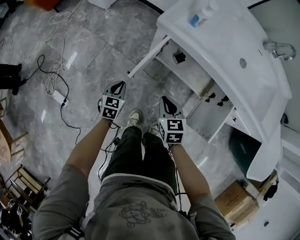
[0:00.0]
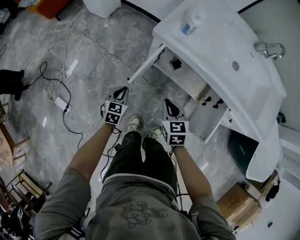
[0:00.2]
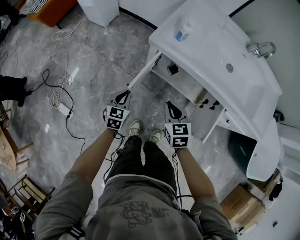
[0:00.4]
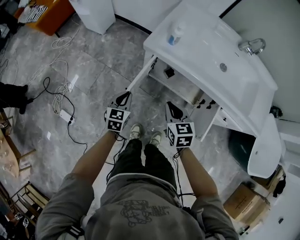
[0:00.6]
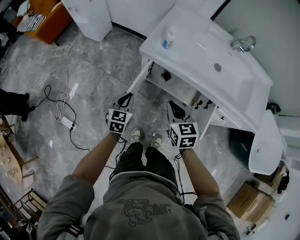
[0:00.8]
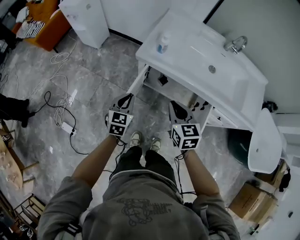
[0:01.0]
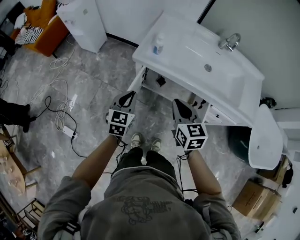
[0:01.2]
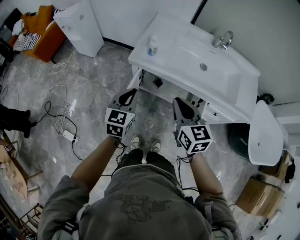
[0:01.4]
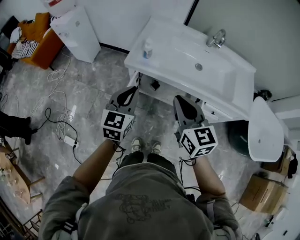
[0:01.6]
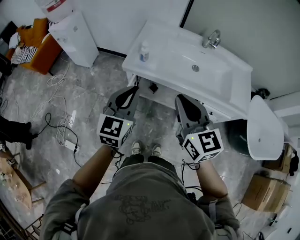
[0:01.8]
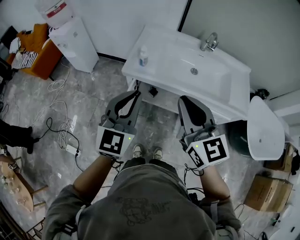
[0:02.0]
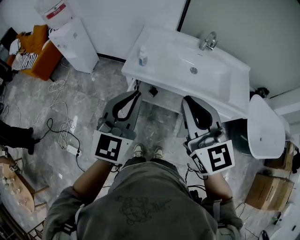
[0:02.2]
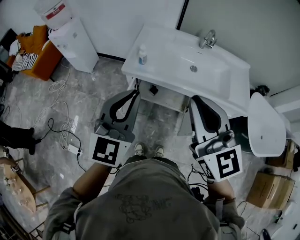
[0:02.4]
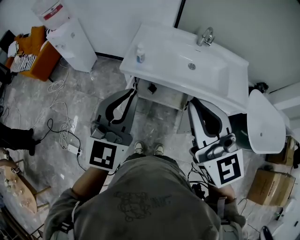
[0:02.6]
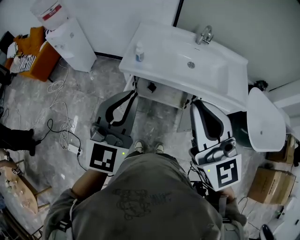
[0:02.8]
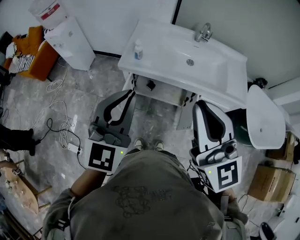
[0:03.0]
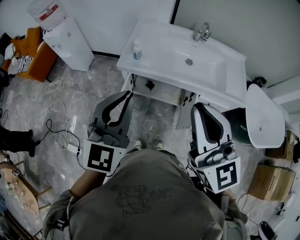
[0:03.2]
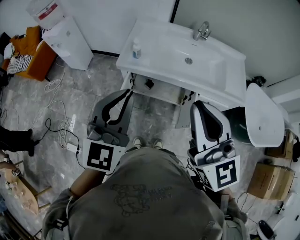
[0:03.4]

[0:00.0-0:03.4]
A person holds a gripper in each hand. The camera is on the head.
0.0 to 1.6 s: Both grippers move upward, about 40 cm. The left gripper turns by approximately 30 degrees. Meanwhile the right gripper changes its angle by about 30 degrees.
1.6 to 3.4 s: Both grippers move upward and backward, roughly 20 cm. The left gripper swivels approximately 20 degrees, while the right gripper rotates about 30 degrees.

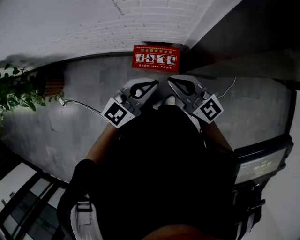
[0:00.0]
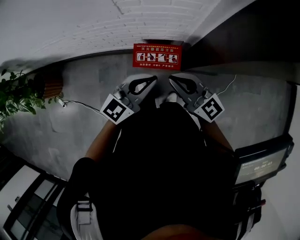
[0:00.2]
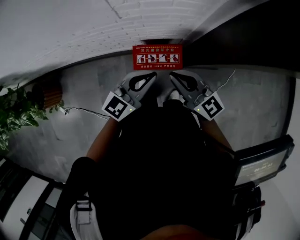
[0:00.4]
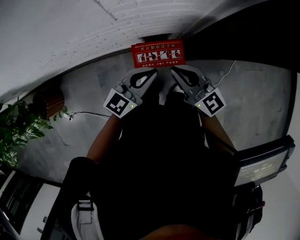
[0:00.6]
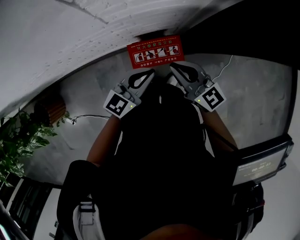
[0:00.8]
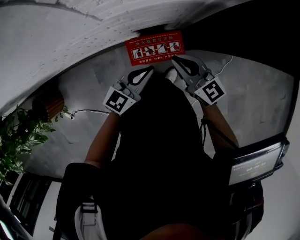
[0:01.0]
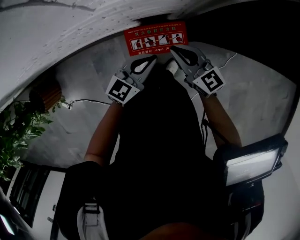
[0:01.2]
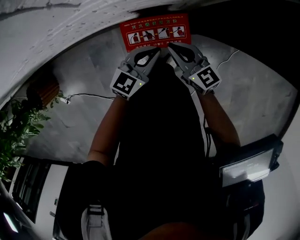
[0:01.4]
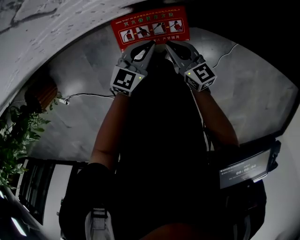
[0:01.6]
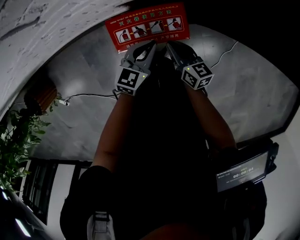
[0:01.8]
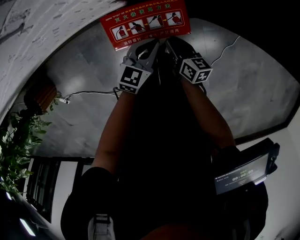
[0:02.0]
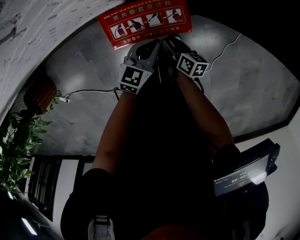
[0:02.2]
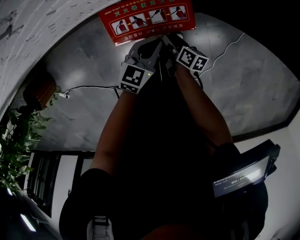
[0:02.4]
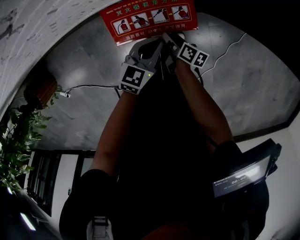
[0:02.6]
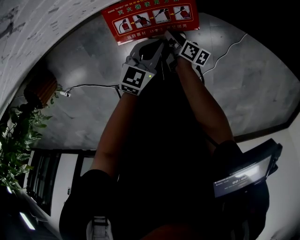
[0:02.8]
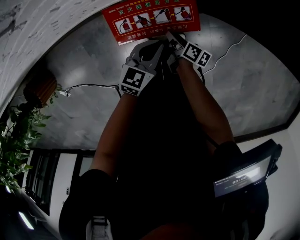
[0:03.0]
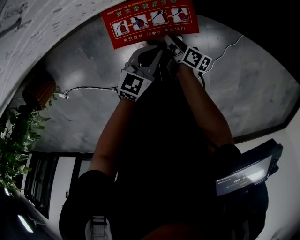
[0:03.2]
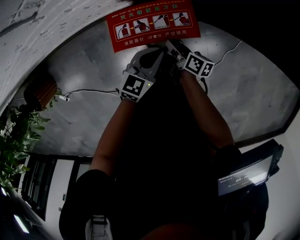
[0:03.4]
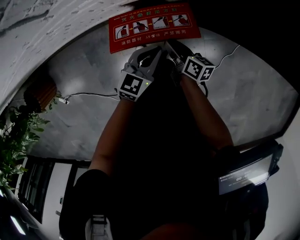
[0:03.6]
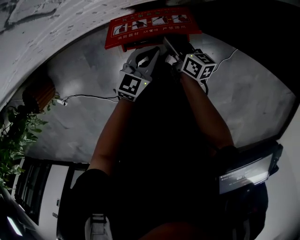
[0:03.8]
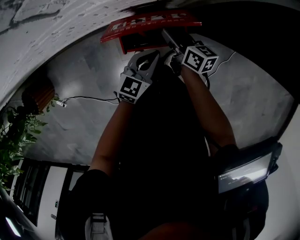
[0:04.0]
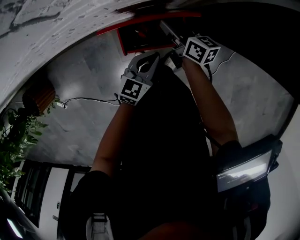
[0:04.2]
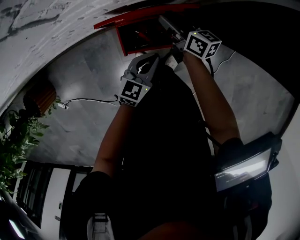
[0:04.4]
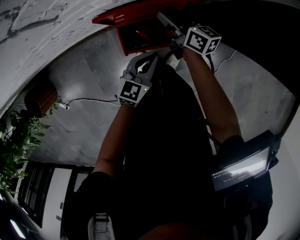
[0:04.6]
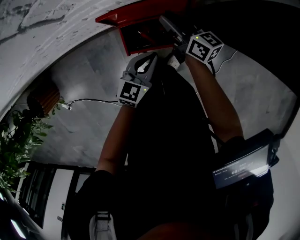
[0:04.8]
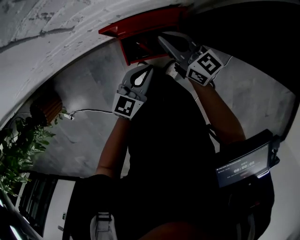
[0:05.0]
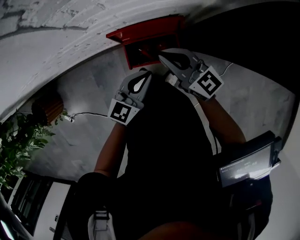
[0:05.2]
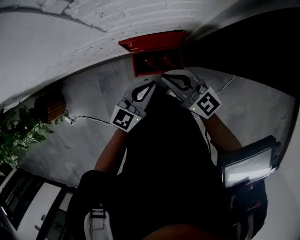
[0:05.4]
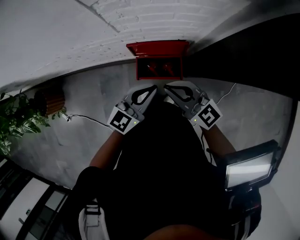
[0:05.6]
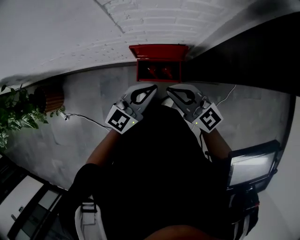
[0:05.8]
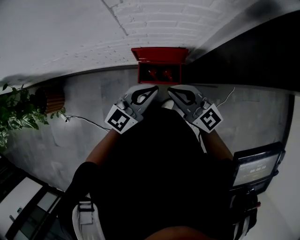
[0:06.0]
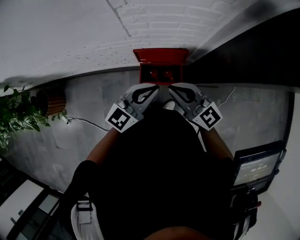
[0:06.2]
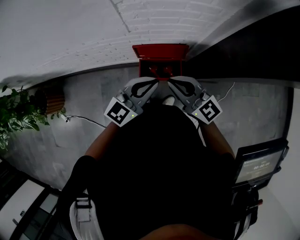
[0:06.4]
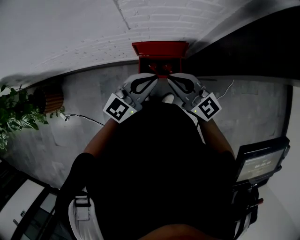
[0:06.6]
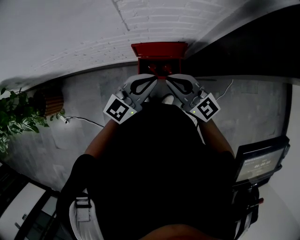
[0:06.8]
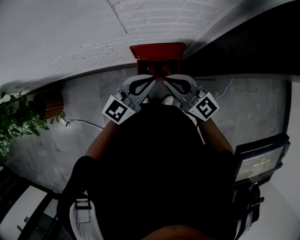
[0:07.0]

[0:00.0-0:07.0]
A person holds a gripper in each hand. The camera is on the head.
0.0 to 1.4 s: Both grippers move downward and forward, some 35 cm. The right gripper swivels some 30 degrees.
1.4 to 2.8 s: The left gripper goes about 15 cm downward, while the right gripper travels downward by approximately 30 cm, rolls clockwise, seen from behind, by some 60 degrees, and opens up.
2.8 to 4.2 s: The right gripper heads upward and forward, covering roughly 25 cm, and swivels some 40 degrees. Meanwhile the left gripper shifts roughly 5 cm upward.
4.2 to 5.6 s: The left gripper travels upward by some 30 cm. The right gripper shifts roughly 40 cm upward and backward, rolls counterclockwise, seen from behind, by roughly 50 degrees, and closes its fingers.
5.6 to 7.0 s: The right gripper is displaced upward by roughly 5 cm. The left gripper moves upward, roughly 10 cm.

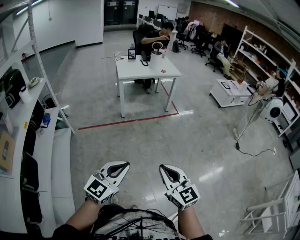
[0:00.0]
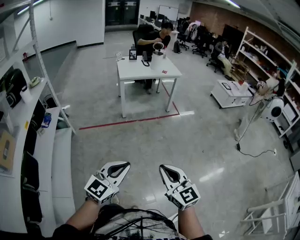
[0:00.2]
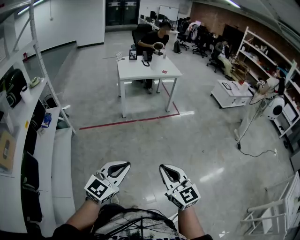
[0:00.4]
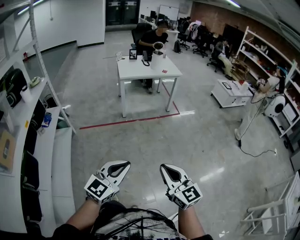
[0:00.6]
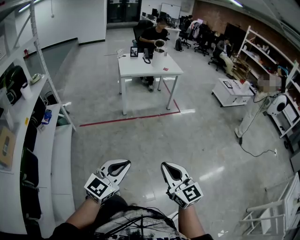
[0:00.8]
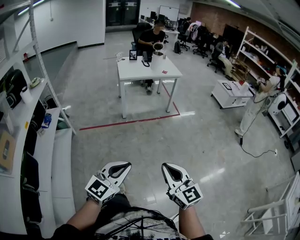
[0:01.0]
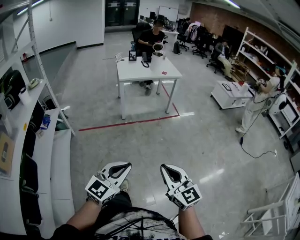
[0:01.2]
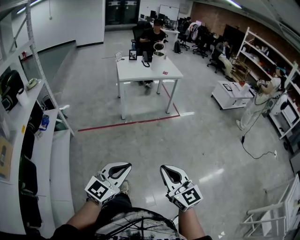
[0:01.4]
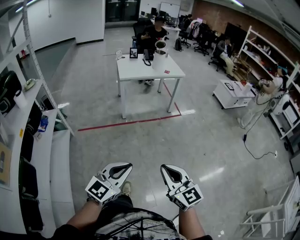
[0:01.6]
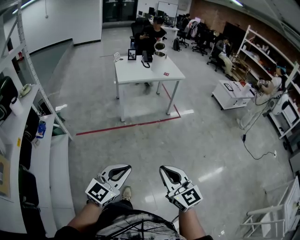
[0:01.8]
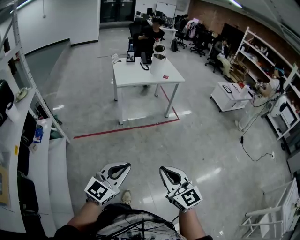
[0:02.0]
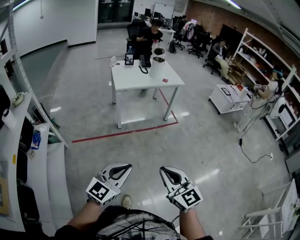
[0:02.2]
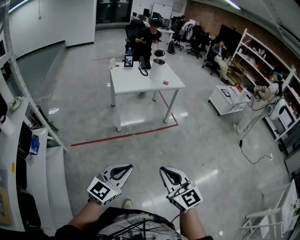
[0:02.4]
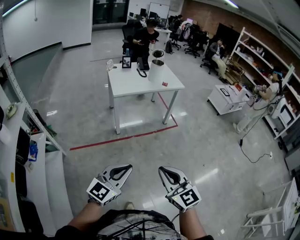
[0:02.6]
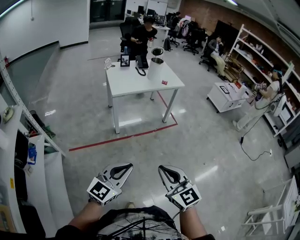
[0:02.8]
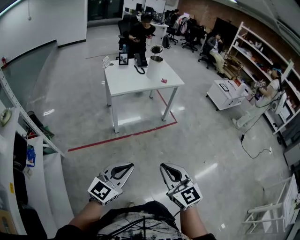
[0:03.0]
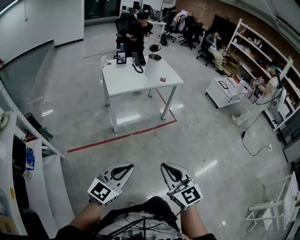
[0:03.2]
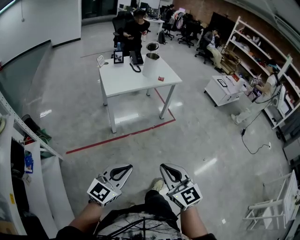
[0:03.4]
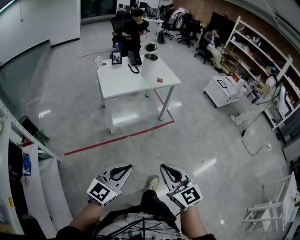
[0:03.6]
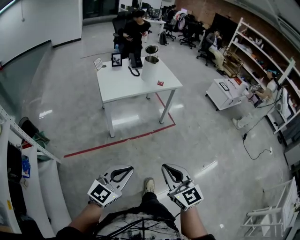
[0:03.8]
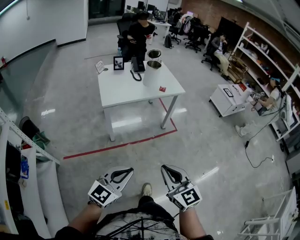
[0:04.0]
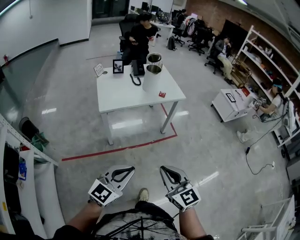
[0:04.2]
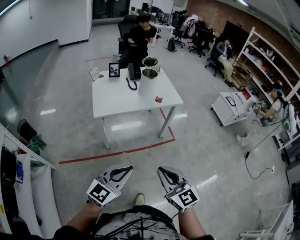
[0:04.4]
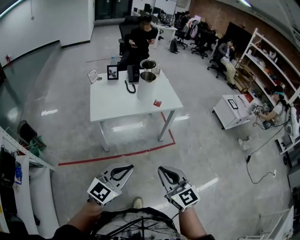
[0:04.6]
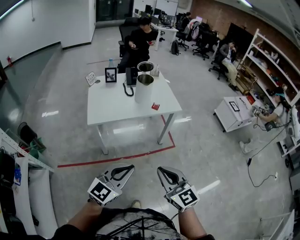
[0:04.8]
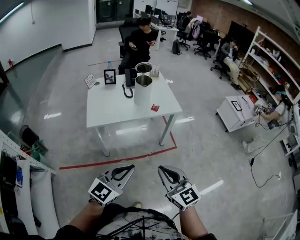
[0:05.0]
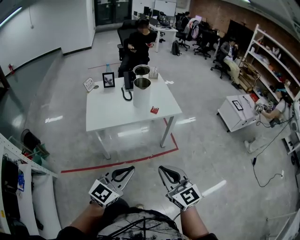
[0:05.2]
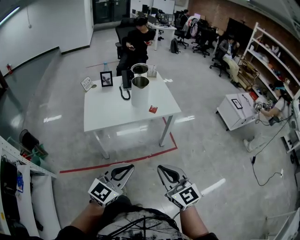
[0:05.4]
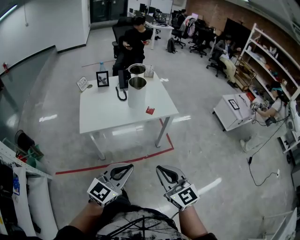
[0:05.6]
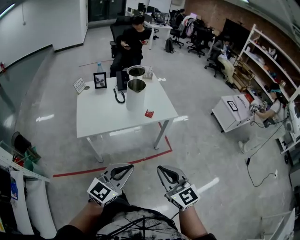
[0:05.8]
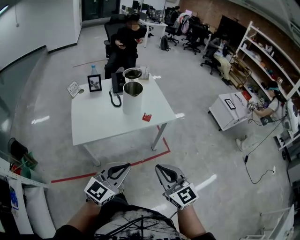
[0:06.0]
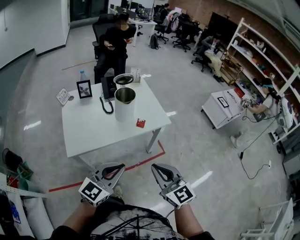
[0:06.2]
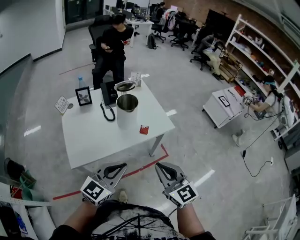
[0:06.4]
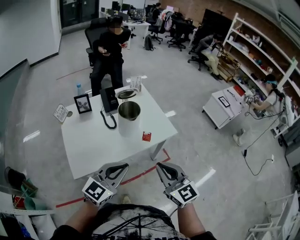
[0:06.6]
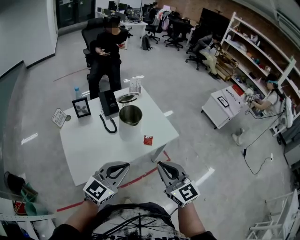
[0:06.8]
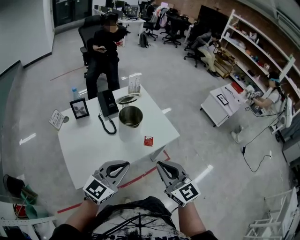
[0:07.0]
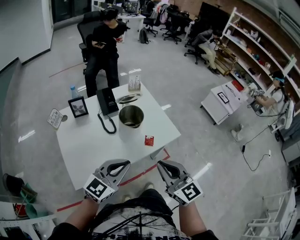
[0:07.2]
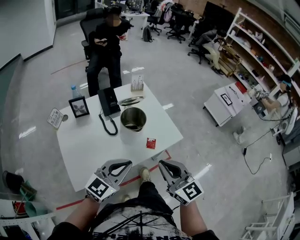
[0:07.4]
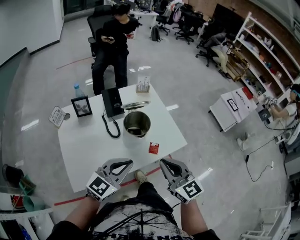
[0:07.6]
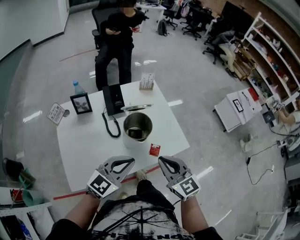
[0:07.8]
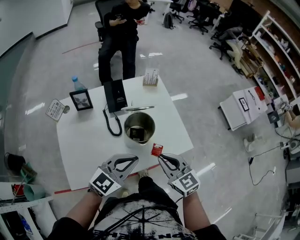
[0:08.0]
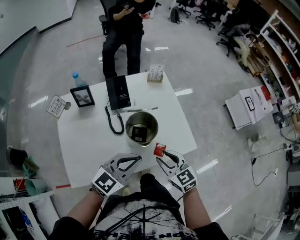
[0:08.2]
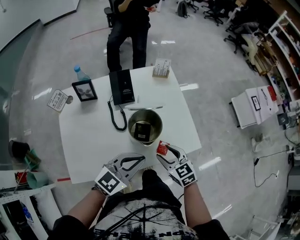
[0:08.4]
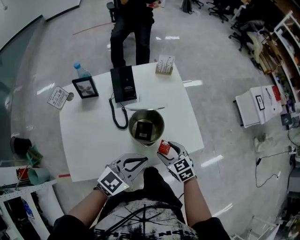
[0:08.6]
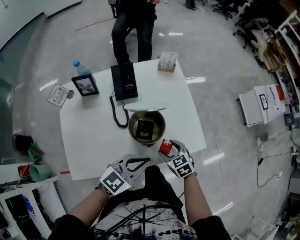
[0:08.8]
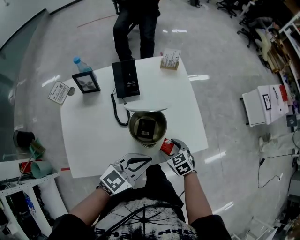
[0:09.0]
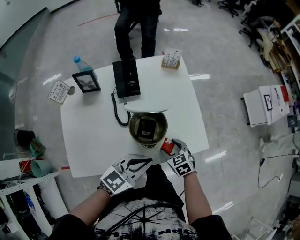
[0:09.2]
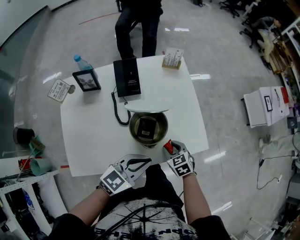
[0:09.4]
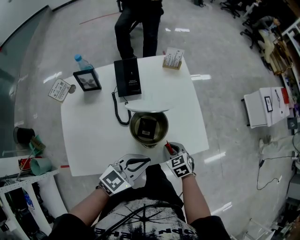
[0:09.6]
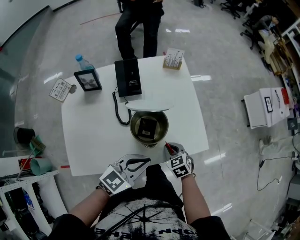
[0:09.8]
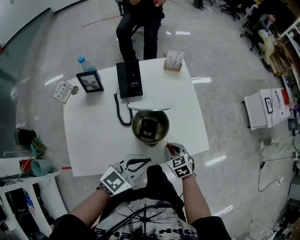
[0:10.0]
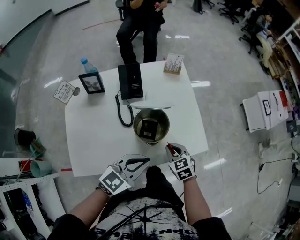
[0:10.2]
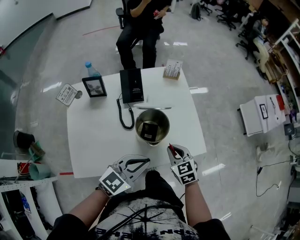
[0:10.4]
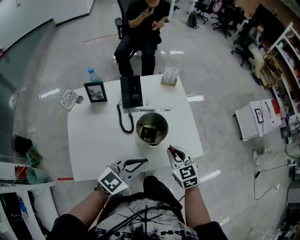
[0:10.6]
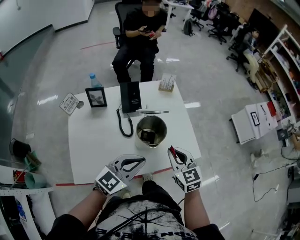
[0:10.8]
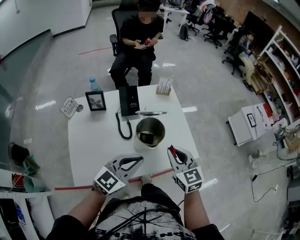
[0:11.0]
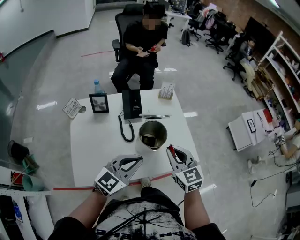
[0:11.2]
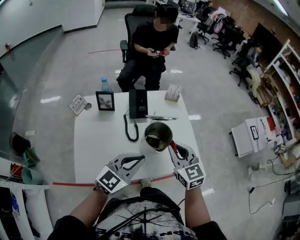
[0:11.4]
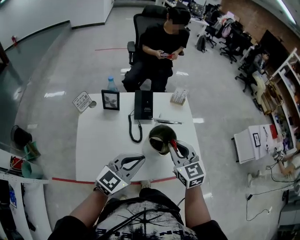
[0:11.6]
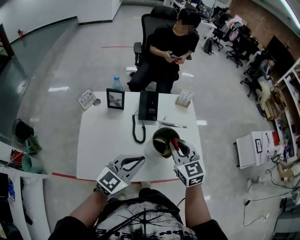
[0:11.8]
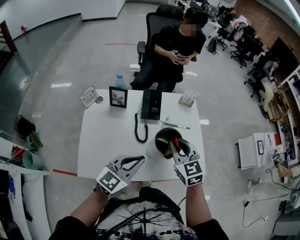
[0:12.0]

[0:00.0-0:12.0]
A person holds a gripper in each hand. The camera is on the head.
0.0 to 1.6 s: Both grippers travel together forward, about 10 cm.
1.6 to 3.0 s: The left gripper moves forward, approximately 25 cm. The right gripper moves forward and to the left, some 25 cm.
3.0 to 4.4 s: The grippers both shift forward by some 25 cm.
4.4 to 6.0 s: The grippers both shift forward by some 25 cm.
6.0 to 7.6 s: The two grippers go about 30 cm forward.
7.6 to 9.0 s: The left gripper moves downward, forward and to the right, about 15 cm, while the right gripper travels downward and forward by approximately 30 cm, tilts its fingers about 40 degrees downward, and opens up.
9.0 to 10.4 s: The right gripper moves upward, about 10 cm, and closes its fingers.
10.4 to 12.0 s: The right gripper heads upward and to the left, covering some 20 cm. The left gripper goes about 10 cm to the left.

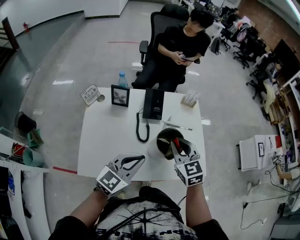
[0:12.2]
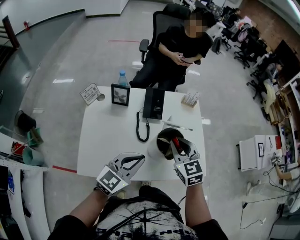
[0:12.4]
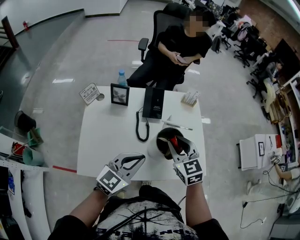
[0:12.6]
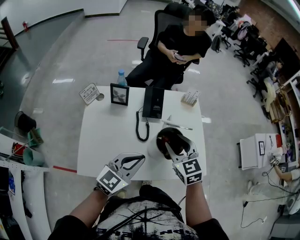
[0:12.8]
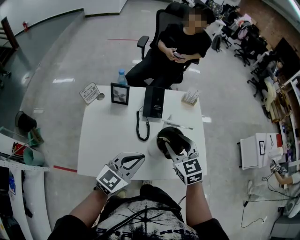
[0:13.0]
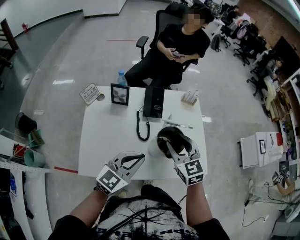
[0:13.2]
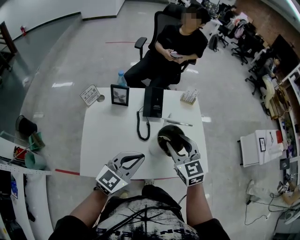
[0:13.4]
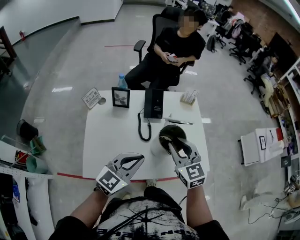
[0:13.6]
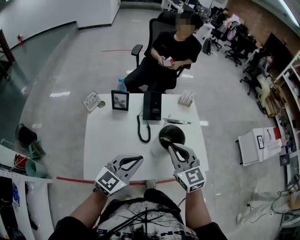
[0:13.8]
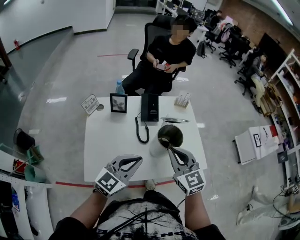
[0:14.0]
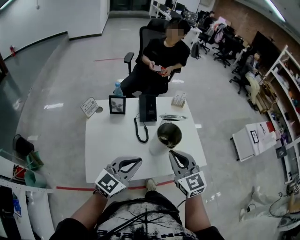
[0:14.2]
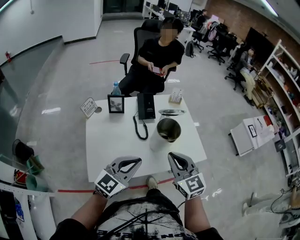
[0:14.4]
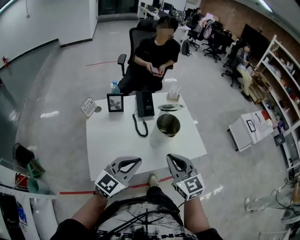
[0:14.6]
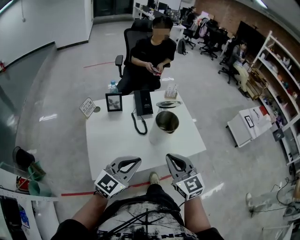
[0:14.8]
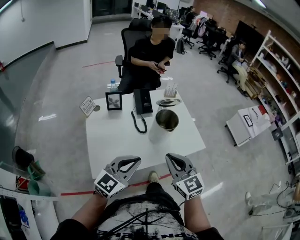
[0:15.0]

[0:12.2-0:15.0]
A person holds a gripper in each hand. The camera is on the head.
12.2 to 13.6 s: The grippers move only a little.
13.6 to 15.0 s: The left gripper moves backward, roughly 10 cm. The right gripper goes some 20 cm backward, and closes up.
